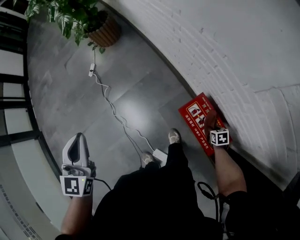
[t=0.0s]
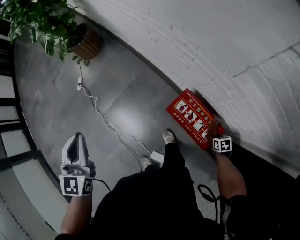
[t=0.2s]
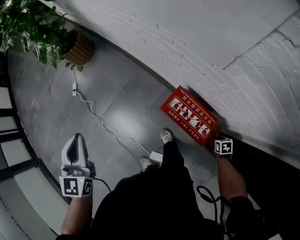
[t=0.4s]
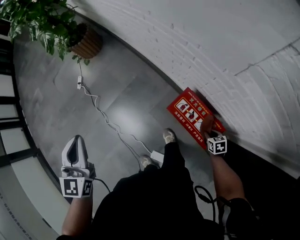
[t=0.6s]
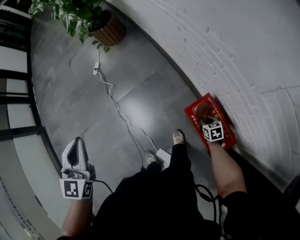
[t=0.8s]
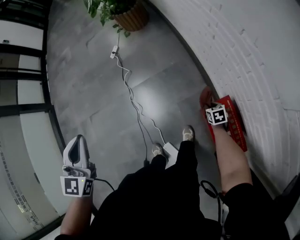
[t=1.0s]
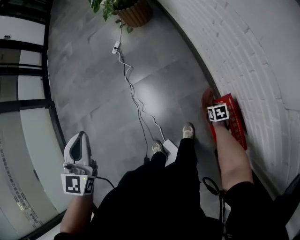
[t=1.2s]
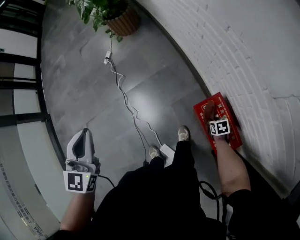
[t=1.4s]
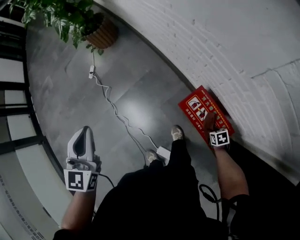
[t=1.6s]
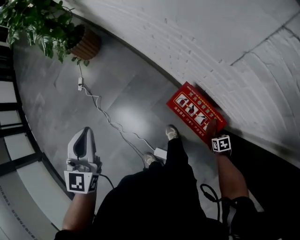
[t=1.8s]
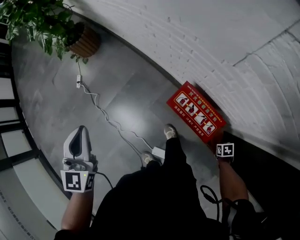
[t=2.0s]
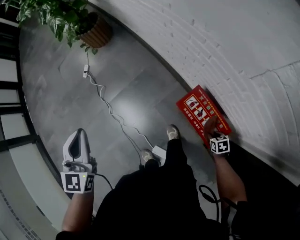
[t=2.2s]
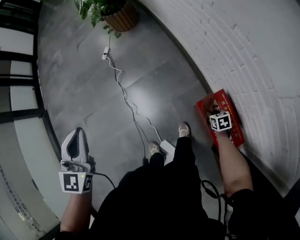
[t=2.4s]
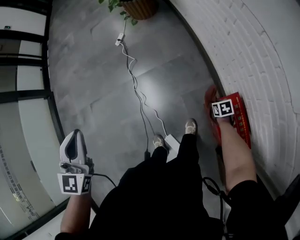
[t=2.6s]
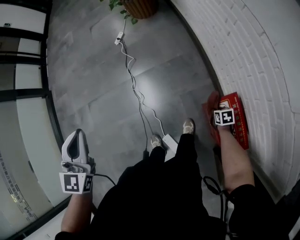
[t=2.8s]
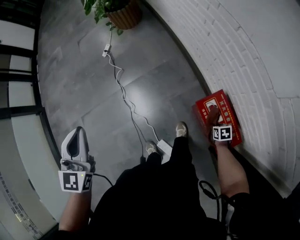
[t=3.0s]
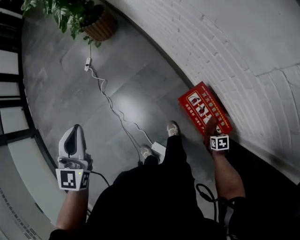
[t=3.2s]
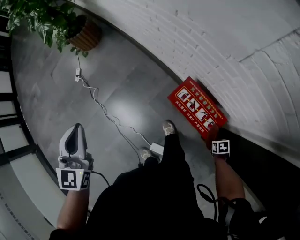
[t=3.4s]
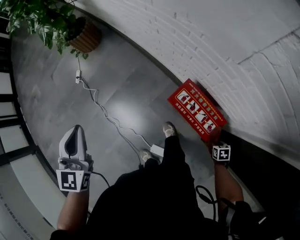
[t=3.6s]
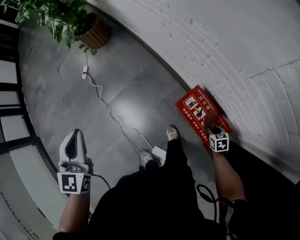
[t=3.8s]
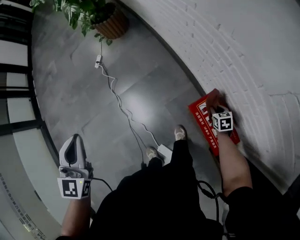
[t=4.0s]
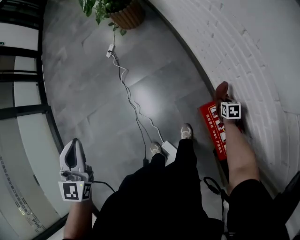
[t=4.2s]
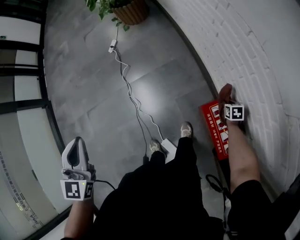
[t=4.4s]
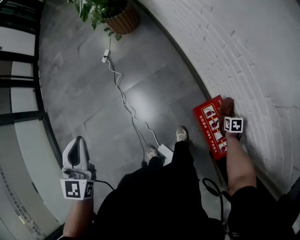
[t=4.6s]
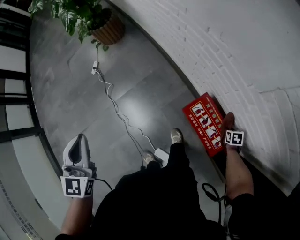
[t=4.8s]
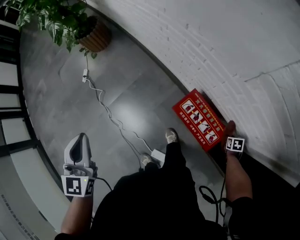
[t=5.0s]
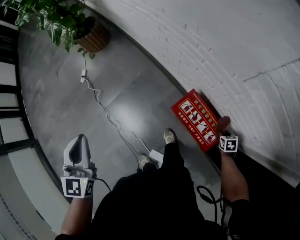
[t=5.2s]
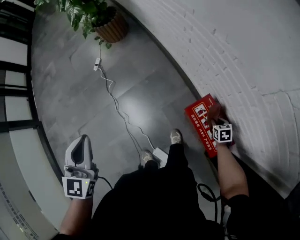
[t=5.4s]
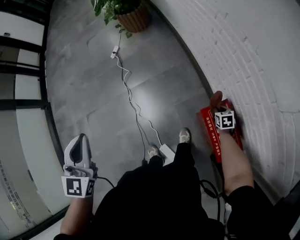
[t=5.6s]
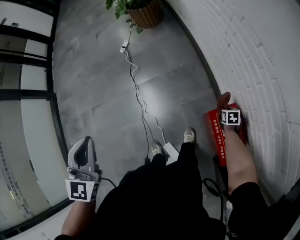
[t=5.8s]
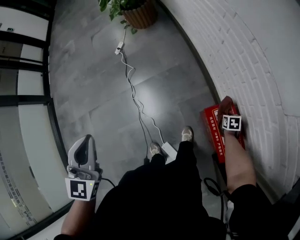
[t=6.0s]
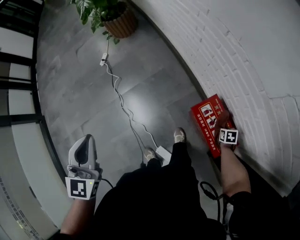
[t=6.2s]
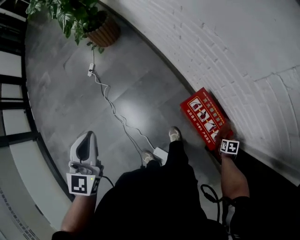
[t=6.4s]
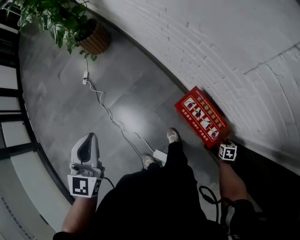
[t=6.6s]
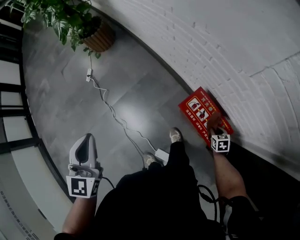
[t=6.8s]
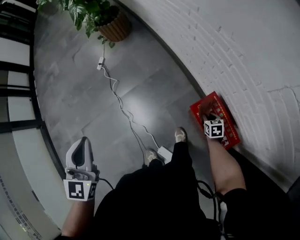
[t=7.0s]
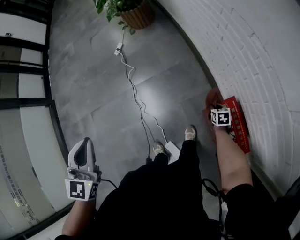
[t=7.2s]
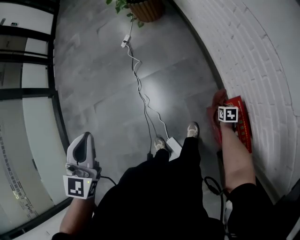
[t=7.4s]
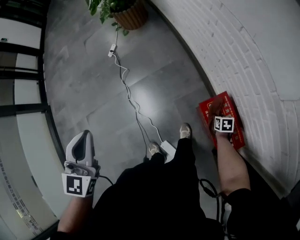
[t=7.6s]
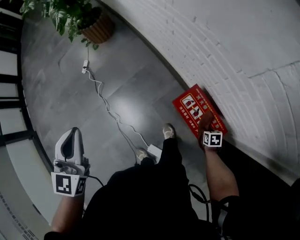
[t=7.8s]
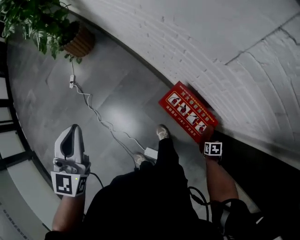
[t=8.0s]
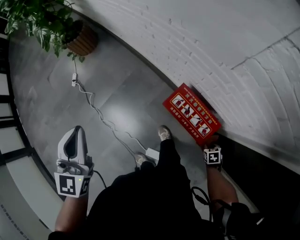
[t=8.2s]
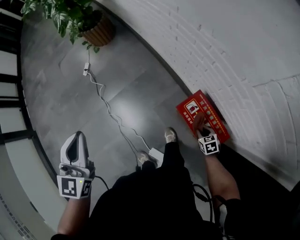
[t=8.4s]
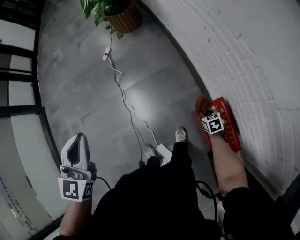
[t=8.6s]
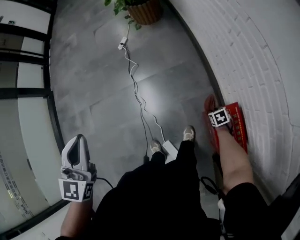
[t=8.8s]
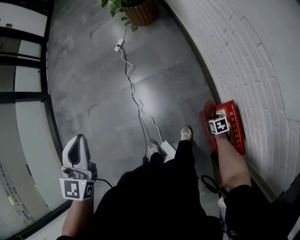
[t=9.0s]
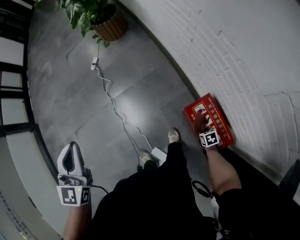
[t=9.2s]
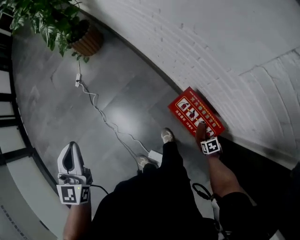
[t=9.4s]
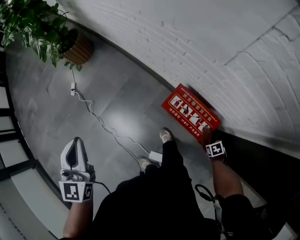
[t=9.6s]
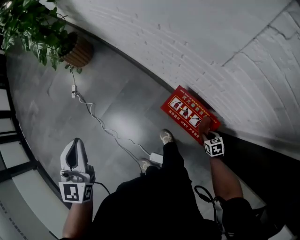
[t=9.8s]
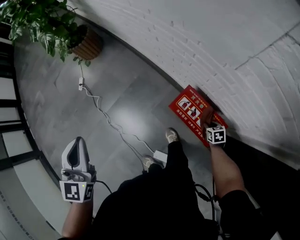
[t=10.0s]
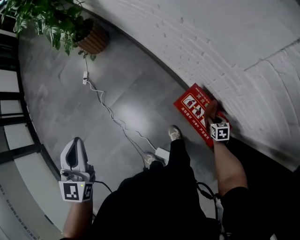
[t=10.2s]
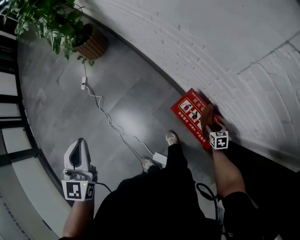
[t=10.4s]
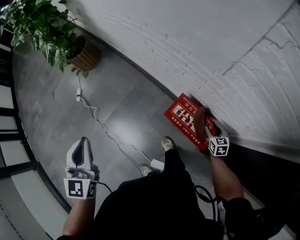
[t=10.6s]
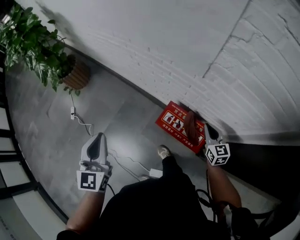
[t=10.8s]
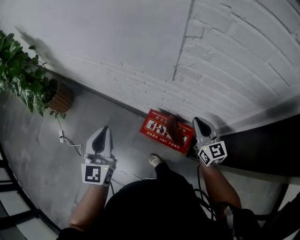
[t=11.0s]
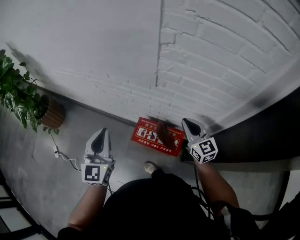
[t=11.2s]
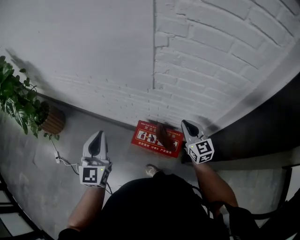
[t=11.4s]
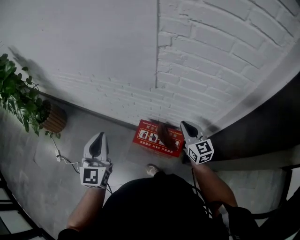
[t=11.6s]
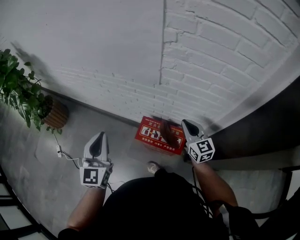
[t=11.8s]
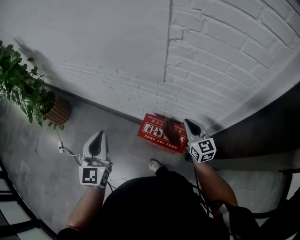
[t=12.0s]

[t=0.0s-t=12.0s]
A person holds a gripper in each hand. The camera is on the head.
t=1.6s to t=3.0s: The left gripper changes place by some 10 cm.
t=3.0s to t=4.4s: The right gripper ends up about 15 cm from where it was.
t=7.6s to t=9.0s: The right gripper rotates about 20 degrees.
t=9.0s to t=10.4s: The left gripper shifts by some 15 cm, and rotates approximately 20 degrees; the right gripper swivels about 40 degrees, and opens up.
t=10.4s to t=12.0s: The left gripper shifts by some 20 cm, and changes its angle by approximately 30 degrees. The right gripper is displaced upward by some 35 cm, angles its fingers upward, by roughly 50 degrees, and closes its fingers.

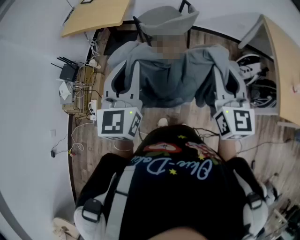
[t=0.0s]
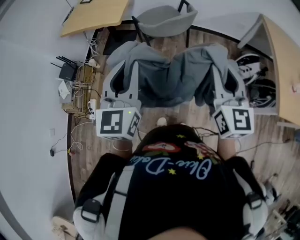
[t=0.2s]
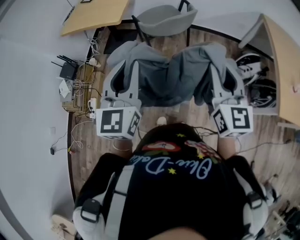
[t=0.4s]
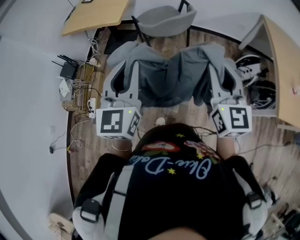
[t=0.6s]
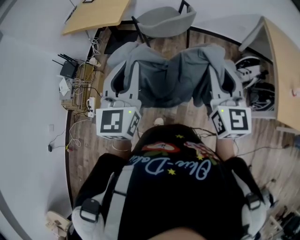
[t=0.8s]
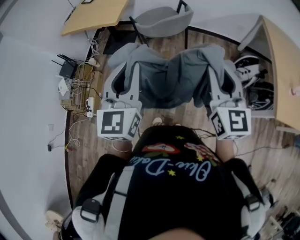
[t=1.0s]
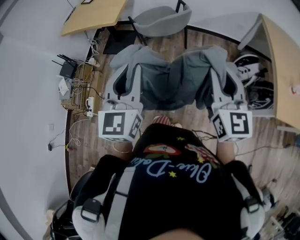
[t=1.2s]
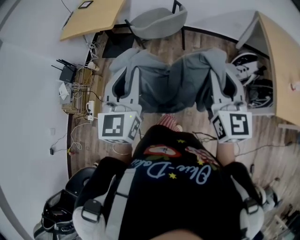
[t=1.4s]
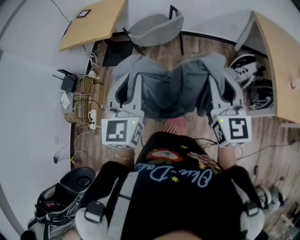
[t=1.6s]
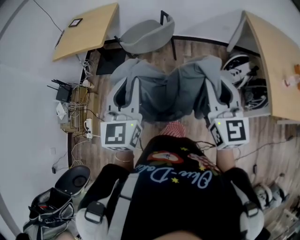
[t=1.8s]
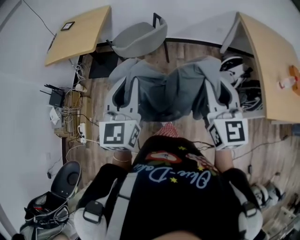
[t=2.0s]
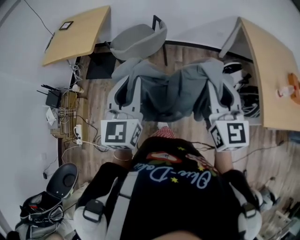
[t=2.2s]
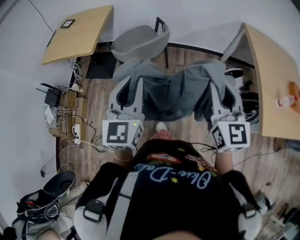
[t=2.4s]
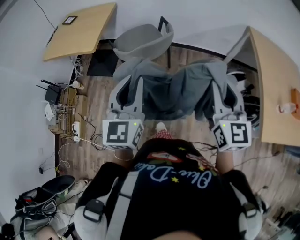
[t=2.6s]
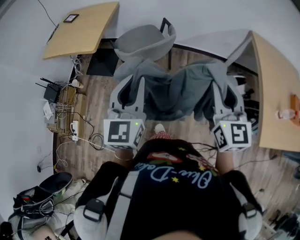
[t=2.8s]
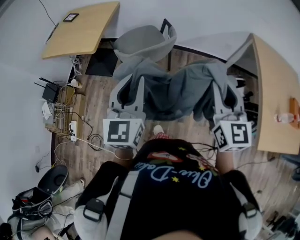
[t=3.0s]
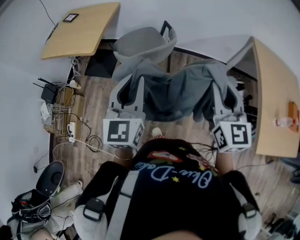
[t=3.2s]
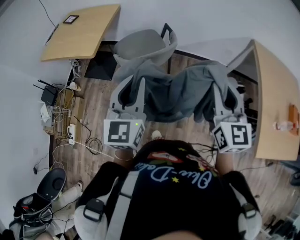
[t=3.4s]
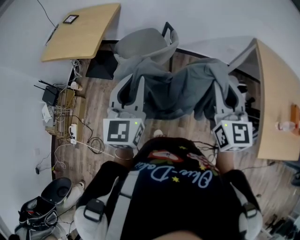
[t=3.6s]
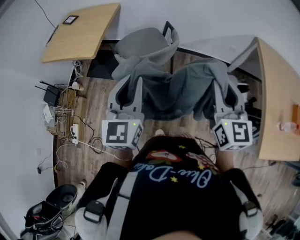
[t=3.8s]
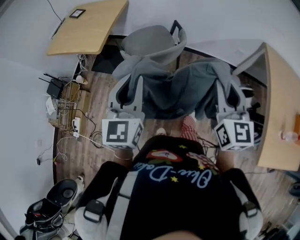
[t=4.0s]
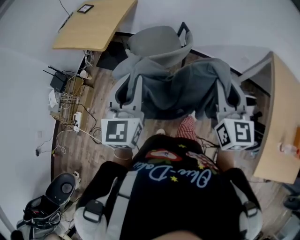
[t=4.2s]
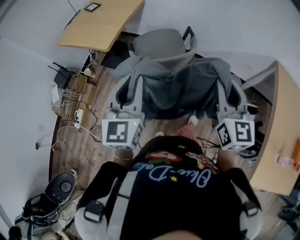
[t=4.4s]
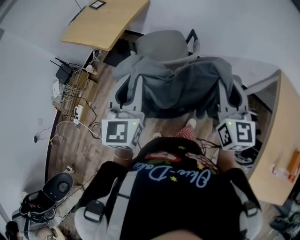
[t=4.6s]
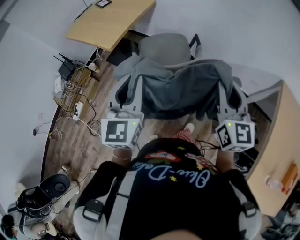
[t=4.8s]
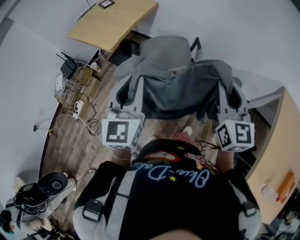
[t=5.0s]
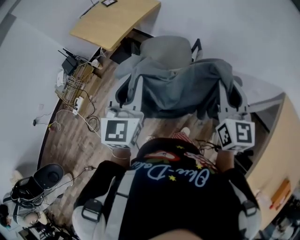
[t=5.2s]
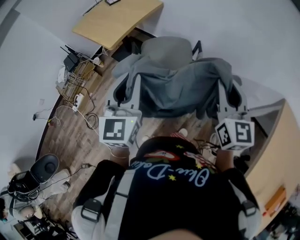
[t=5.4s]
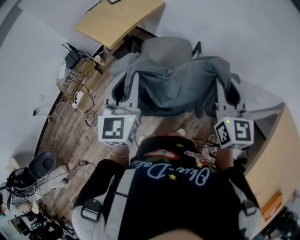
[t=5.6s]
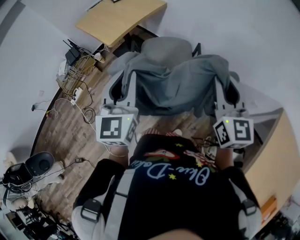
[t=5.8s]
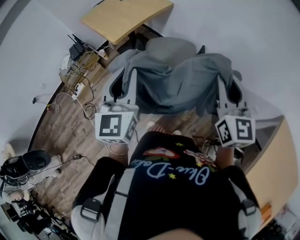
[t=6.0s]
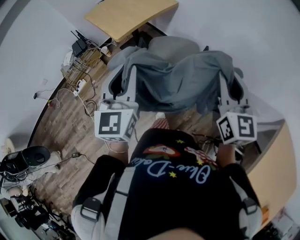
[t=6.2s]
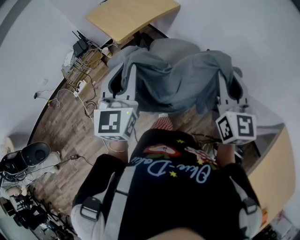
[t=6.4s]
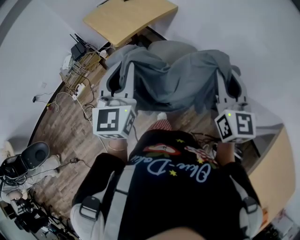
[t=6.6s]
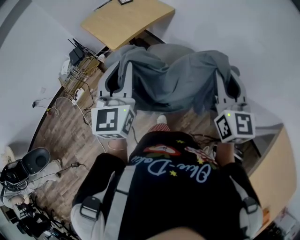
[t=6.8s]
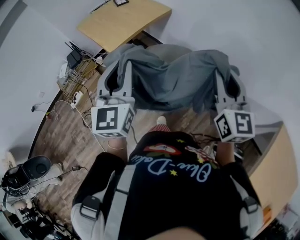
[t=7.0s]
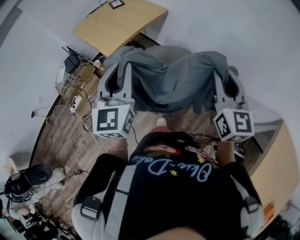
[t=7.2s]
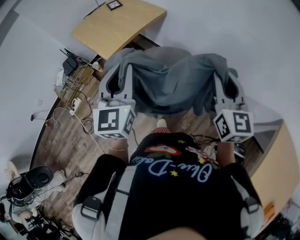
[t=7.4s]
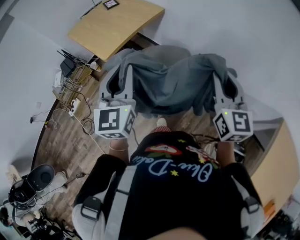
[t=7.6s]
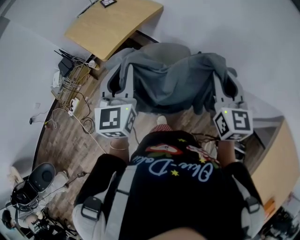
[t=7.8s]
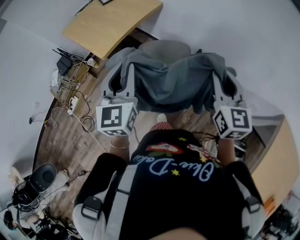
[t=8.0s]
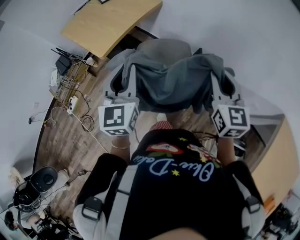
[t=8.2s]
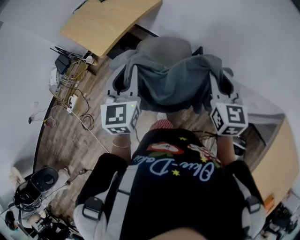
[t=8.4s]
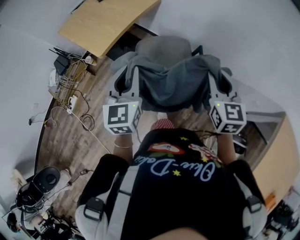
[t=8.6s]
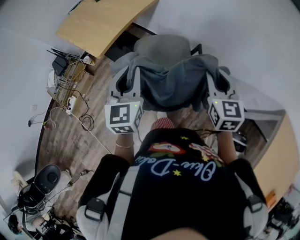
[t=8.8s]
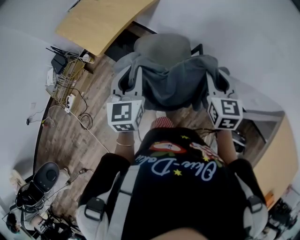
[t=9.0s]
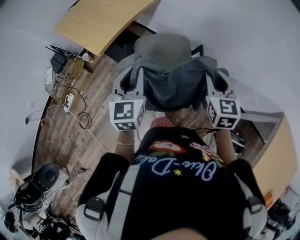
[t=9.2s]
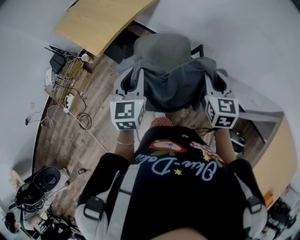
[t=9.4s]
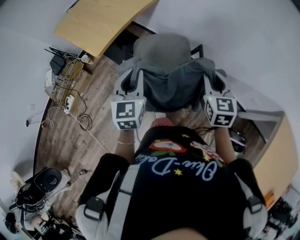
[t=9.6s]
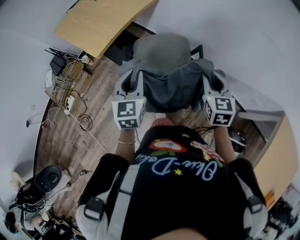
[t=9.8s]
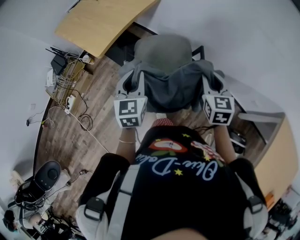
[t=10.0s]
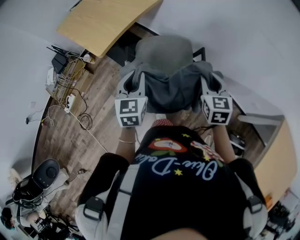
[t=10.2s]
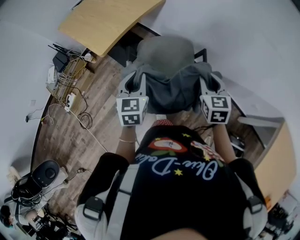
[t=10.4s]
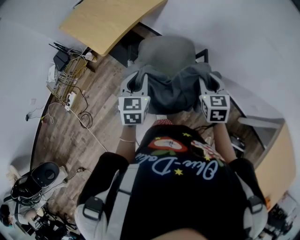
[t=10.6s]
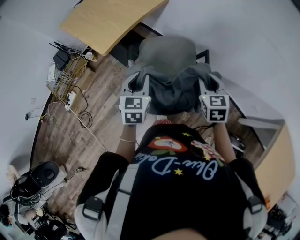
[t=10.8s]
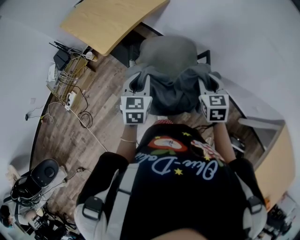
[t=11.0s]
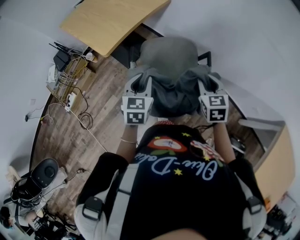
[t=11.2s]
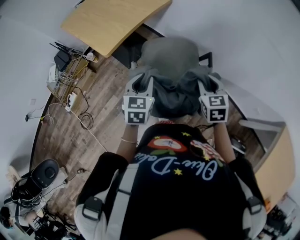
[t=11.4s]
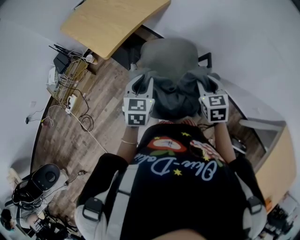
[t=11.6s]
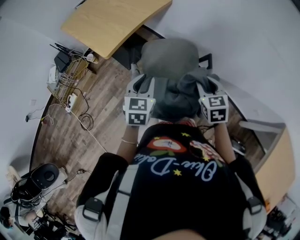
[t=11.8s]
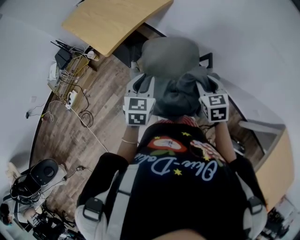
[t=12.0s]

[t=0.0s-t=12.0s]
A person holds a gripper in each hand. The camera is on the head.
t=0.0s to t=1.6s: The grippers both shift to the right by some 10 cm.
t=1.6s to t=3.0s: Both grippers move forward, roughly 15 cm.
t=3.0s to t=4.4s: The left gripper moves forward, about 10 cm. Meanwhile the right gripper travels forward by approximately 15 cm.
t=4.4s to t=6.0s: The left gripper is displaced forward and to the right by approximately 10 cm, and swivels roughly 20 degrees. The right gripper goes approximately 20 cm forward and to the right, and turns by some 20 degrees.
t=6.0s to t=7.6s: The grippers both shift forward by about 10 cm.
t=7.6s to t=9.0s: Both grippers travel together downward, approximately 10 cm.
t=9.0s to t=10.4s: The two grippers go approximately 10 cm downward.
t=10.4s to t=12.0s: There are only small adjustments of the grippers.
